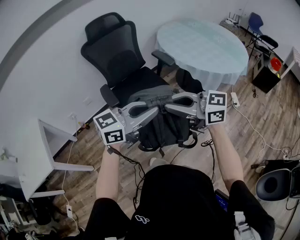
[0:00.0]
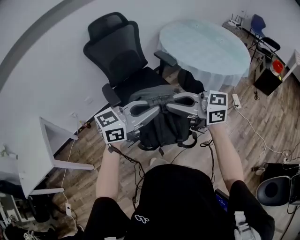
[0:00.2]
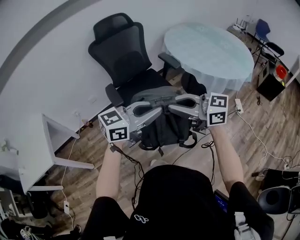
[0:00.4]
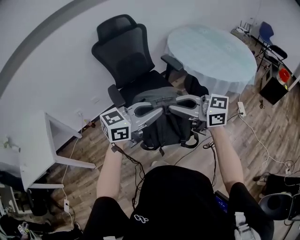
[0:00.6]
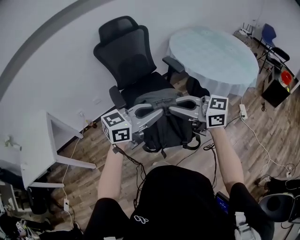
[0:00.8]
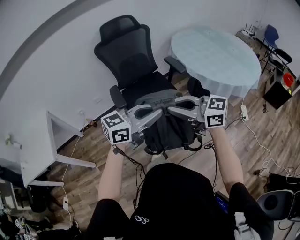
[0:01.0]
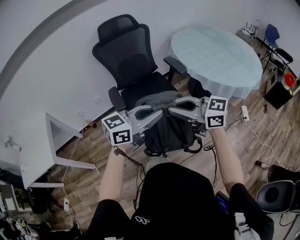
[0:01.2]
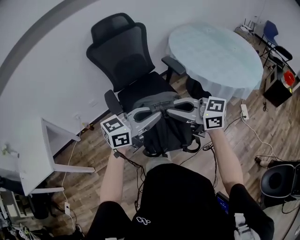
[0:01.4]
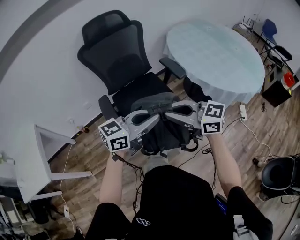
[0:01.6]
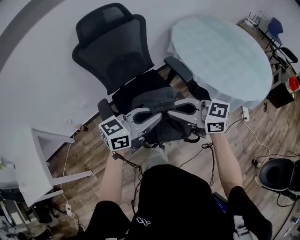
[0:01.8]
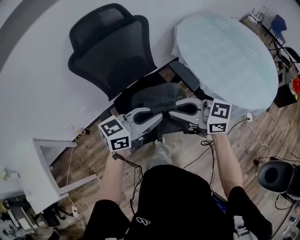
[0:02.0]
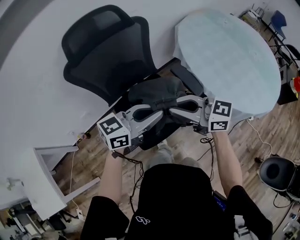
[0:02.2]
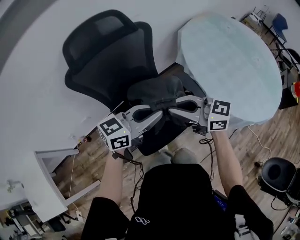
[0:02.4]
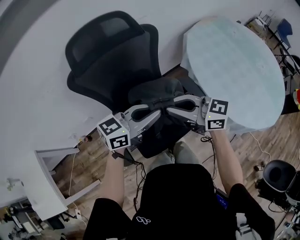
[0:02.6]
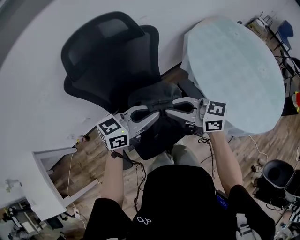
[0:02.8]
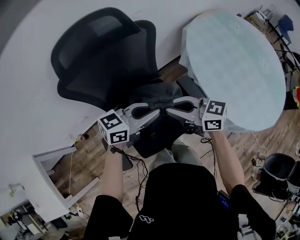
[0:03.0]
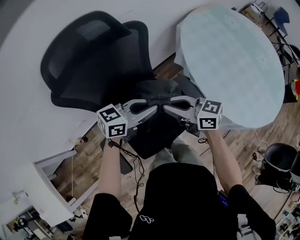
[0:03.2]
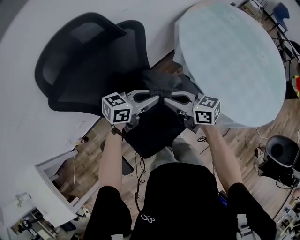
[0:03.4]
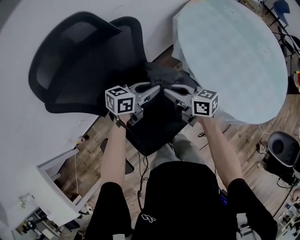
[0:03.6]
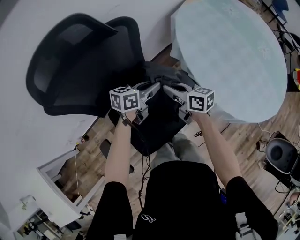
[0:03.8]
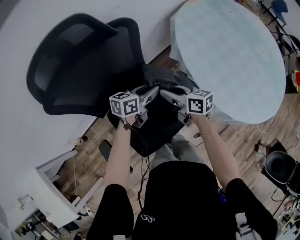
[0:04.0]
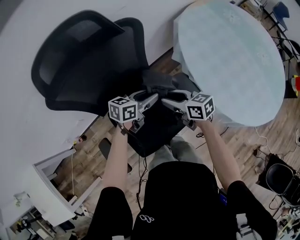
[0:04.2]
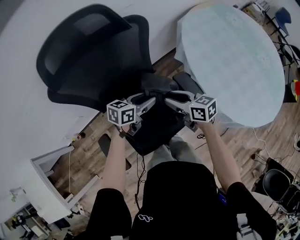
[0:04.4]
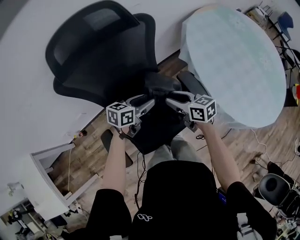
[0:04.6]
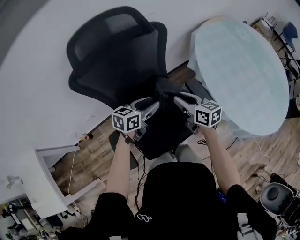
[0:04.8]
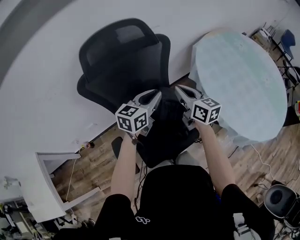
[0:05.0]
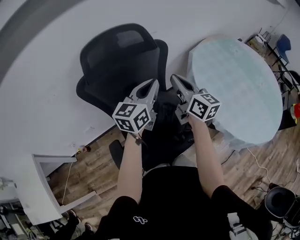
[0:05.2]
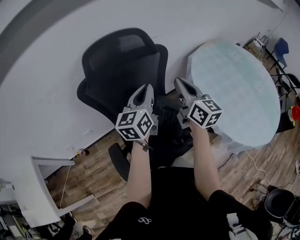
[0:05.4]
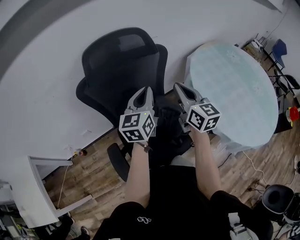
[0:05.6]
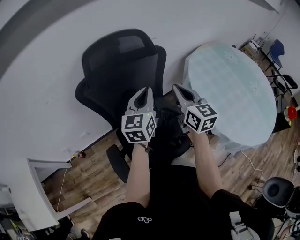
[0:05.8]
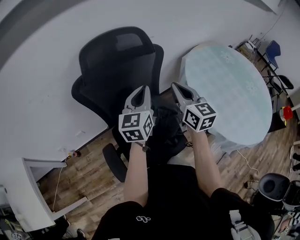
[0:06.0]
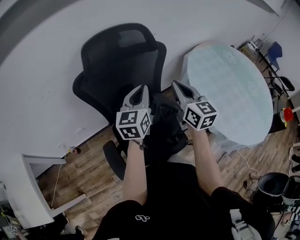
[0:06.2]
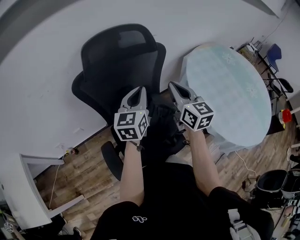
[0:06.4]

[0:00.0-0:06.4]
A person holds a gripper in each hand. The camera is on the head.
0:00.0 to 0:01.6: The right gripper ends up some 20 cm from where it was. Meanwhile the left gripper shifts by about 20 cm.
0:01.6 to 0:03.2: The two grippers travel together, roughly 50 cm. The right gripper swivels approximately 20 degrees.
0:03.2 to 0:04.8: Both grippers travel together downward, approximately 5 cm. The left gripper rotates about 30 degrees, and opens its fingers, while the right gripper turns by roughly 20 degrees.
0:04.8 to 0:06.4: The grippers both shift upward by some 15 cm. The right gripper turns by some 30 degrees, and closes up. The left gripper changes its angle by some 40 degrees, and closes its fingers.

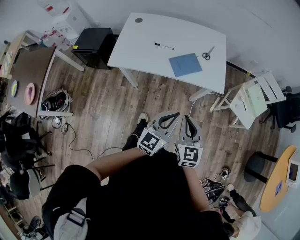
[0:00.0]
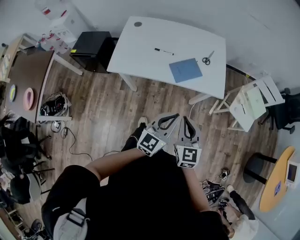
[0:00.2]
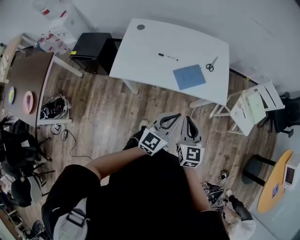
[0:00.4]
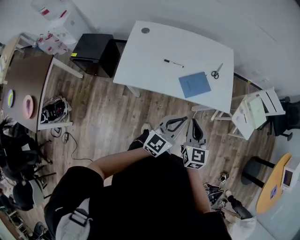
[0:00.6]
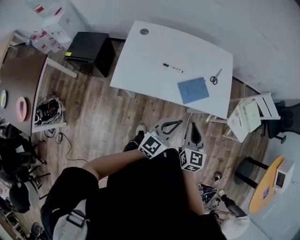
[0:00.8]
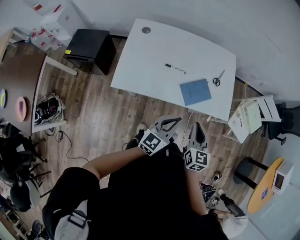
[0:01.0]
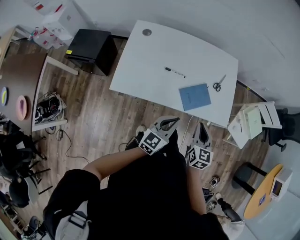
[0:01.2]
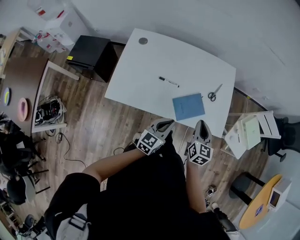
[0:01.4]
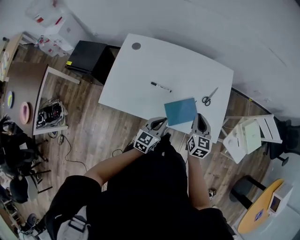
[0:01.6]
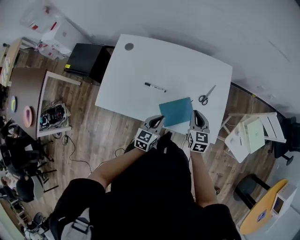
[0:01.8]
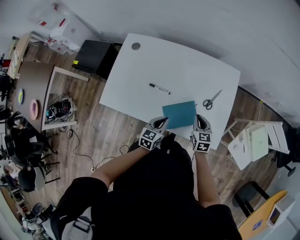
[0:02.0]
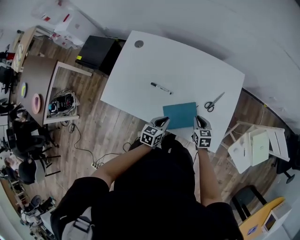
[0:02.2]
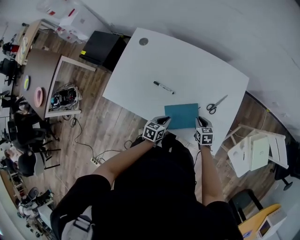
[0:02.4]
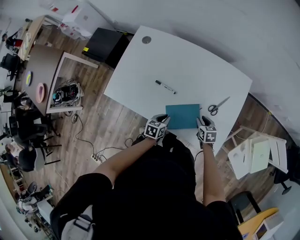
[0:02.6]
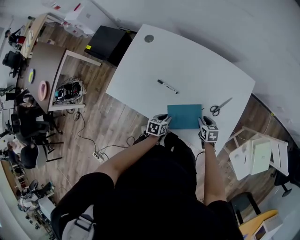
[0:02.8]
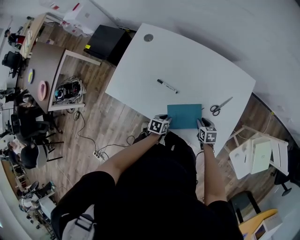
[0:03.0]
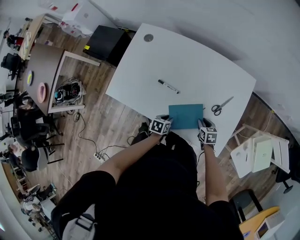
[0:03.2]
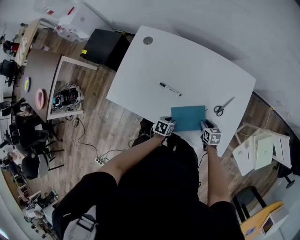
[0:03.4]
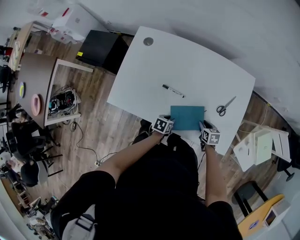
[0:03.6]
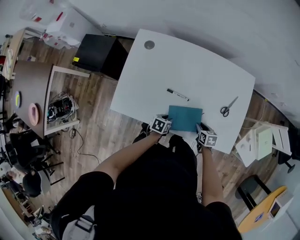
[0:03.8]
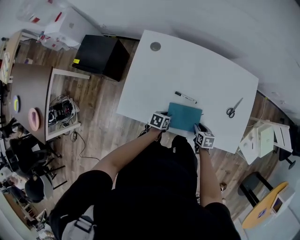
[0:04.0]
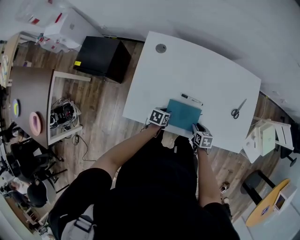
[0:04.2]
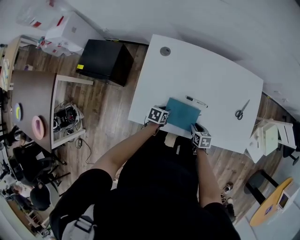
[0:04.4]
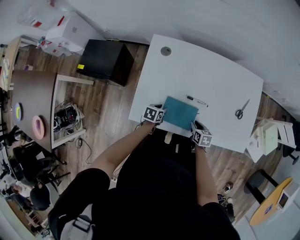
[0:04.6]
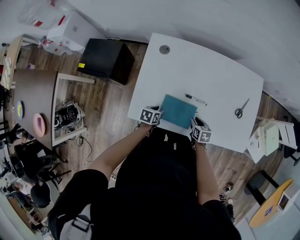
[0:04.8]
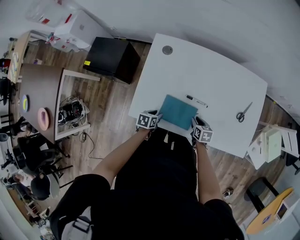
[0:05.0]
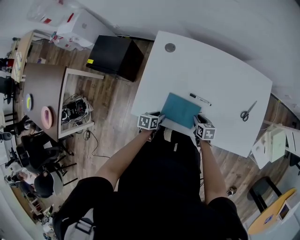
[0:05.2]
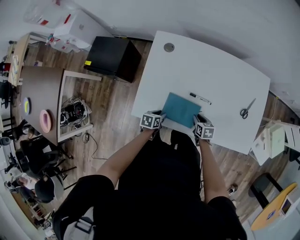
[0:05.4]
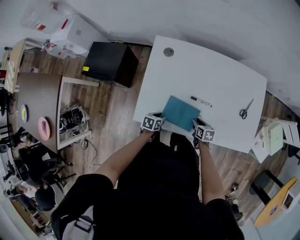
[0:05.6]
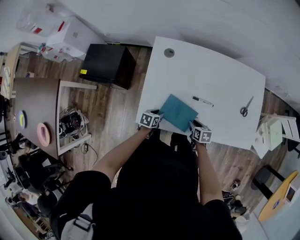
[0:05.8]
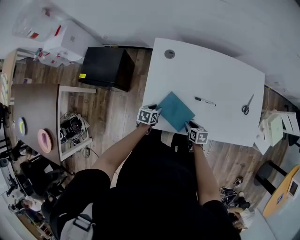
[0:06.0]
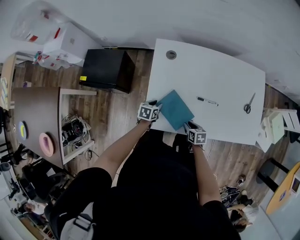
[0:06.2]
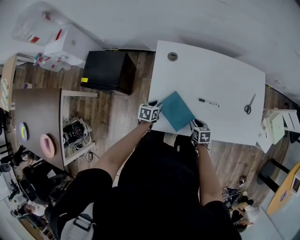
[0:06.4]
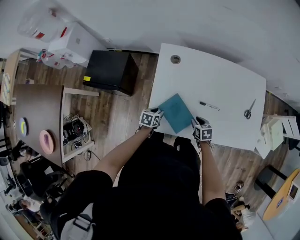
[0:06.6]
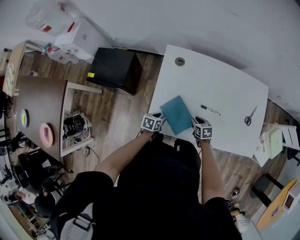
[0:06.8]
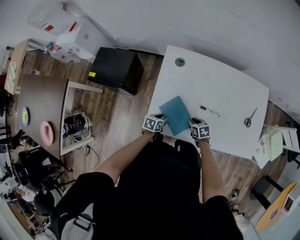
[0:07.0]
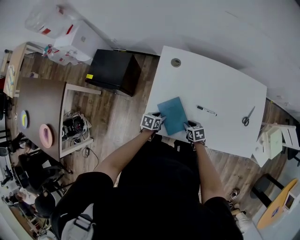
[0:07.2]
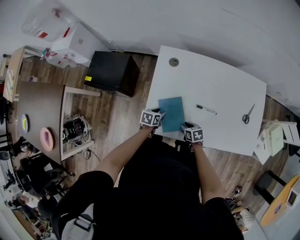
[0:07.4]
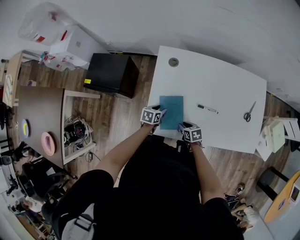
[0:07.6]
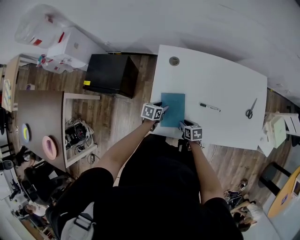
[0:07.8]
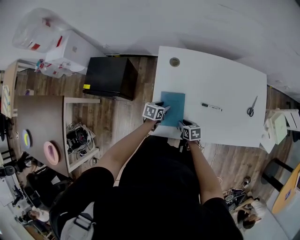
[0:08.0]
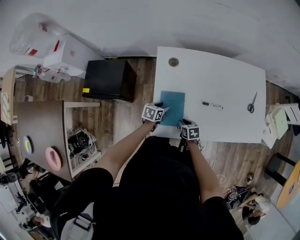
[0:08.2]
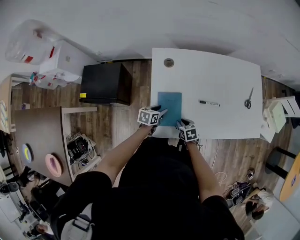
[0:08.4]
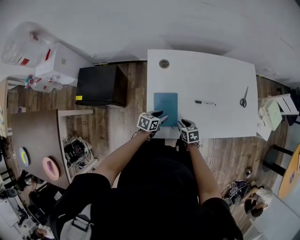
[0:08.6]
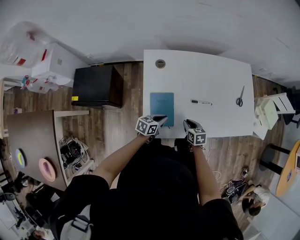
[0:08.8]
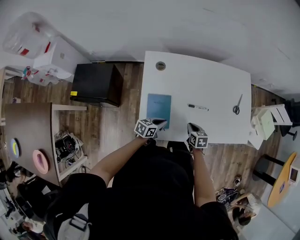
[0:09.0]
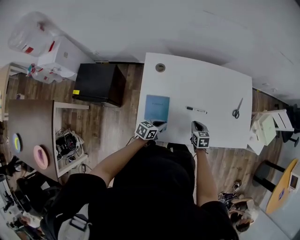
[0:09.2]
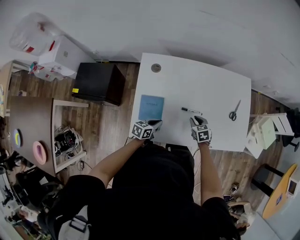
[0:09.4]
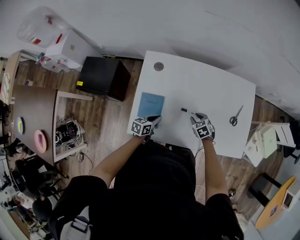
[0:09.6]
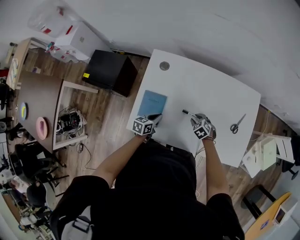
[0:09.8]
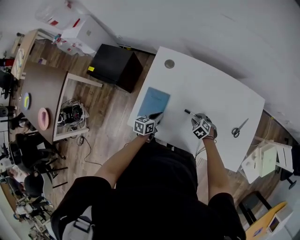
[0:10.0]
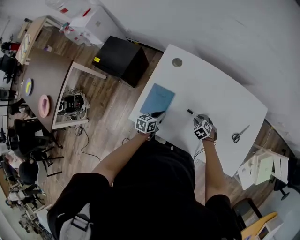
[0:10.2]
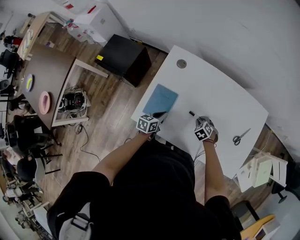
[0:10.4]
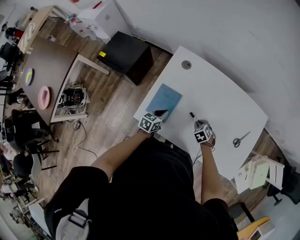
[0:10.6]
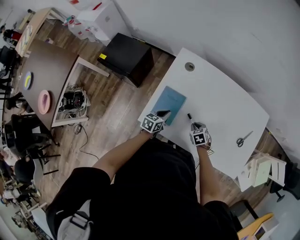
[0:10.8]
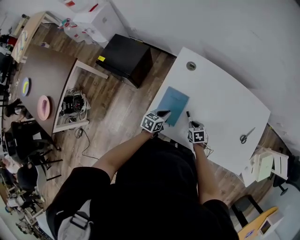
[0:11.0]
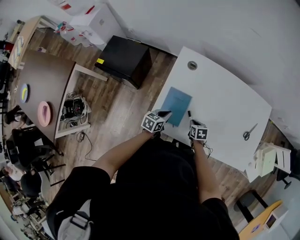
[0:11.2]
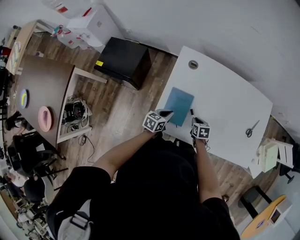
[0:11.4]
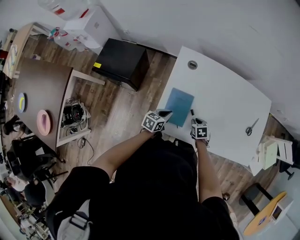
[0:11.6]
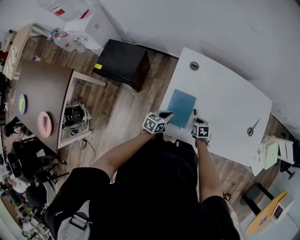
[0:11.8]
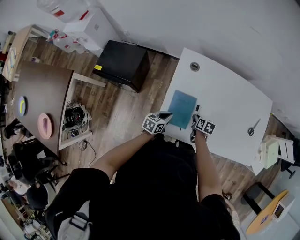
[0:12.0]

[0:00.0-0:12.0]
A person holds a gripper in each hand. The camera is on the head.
0:00.0 to 0:01.6: The left gripper is displaced forward, to the left and downward by approximately 35 cm. The right gripper shifts some 35 cm forward.
0:01.6 to 0:03.0: The two grippers go about 25 cm downward. The right gripper changes its angle by approximately 50 degrees, and opens; the left gripper angles its fingers downward, by roughly 40 degrees, and opens its fingers.
0:03.0 to 0:04.4: Both grippers move to the left, approximately 25 cm.
0:04.4 to 0:06.0: Both grippers travel together to the left, approximately 10 cm.
0:06.0 to 0:07.6: The right gripper shifts approximately 5 cm to the left.
0:07.6 to 0:09.0: The right gripper ends up some 10 cm from where it was, and rotates roughly 20 degrees; the left gripper ends up roughly 10 cm from where it was, swivels about 30 degrees, and closes its fingers.
0:09.0 to 0:10.4: The right gripper changes place by some 10 cm, and rotates around the line of its fingers by about 60 degrees, counterclockwise from behind. Meanwhile the left gripper turns by about 40 degrees.
0:10.4 to 0:12.0: Both grippers travel together to the left, roughly 15 cm. The right gripper rotates around the line of its fingers by about 70 degrees, clockwise from behind.

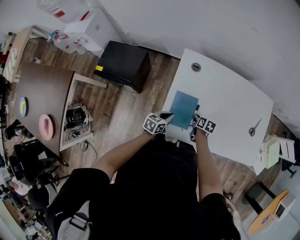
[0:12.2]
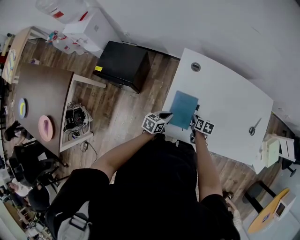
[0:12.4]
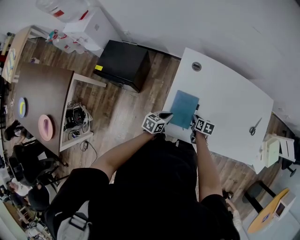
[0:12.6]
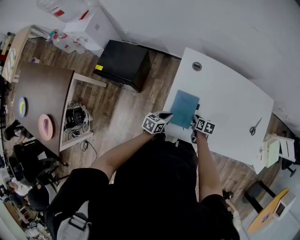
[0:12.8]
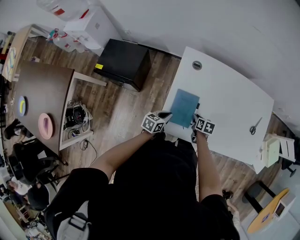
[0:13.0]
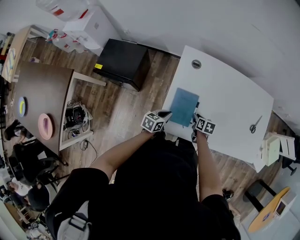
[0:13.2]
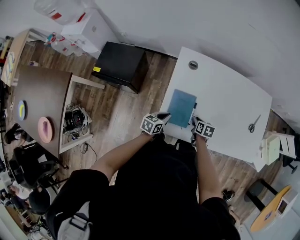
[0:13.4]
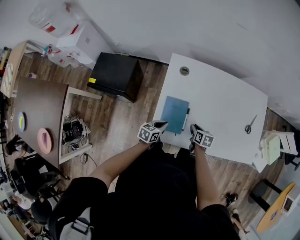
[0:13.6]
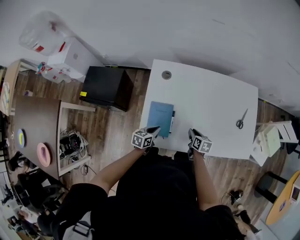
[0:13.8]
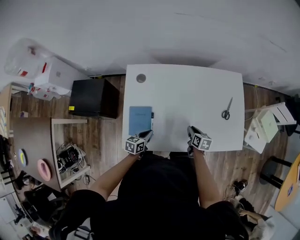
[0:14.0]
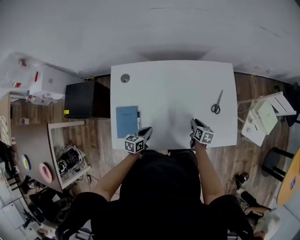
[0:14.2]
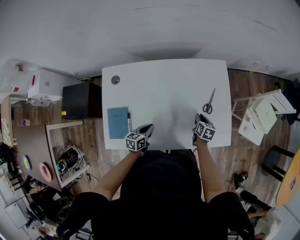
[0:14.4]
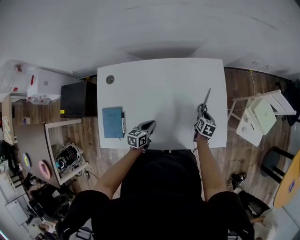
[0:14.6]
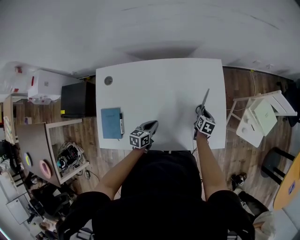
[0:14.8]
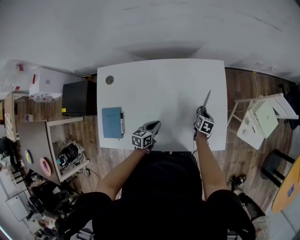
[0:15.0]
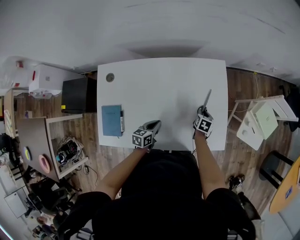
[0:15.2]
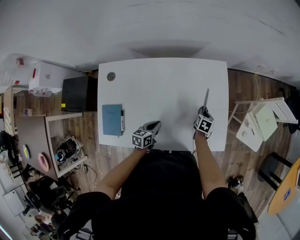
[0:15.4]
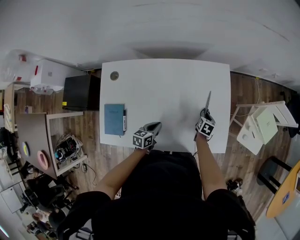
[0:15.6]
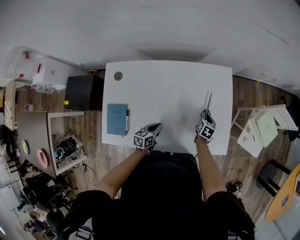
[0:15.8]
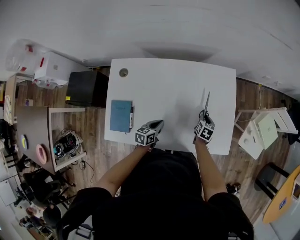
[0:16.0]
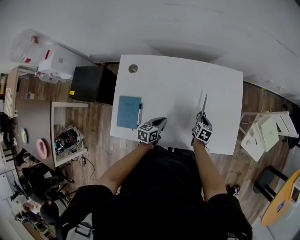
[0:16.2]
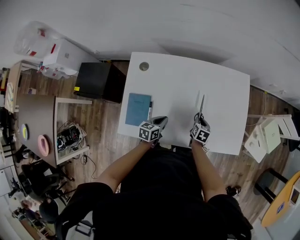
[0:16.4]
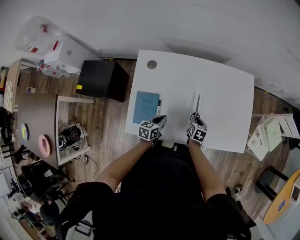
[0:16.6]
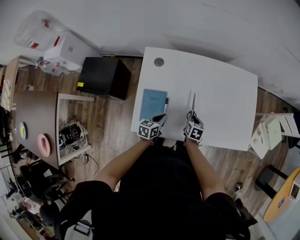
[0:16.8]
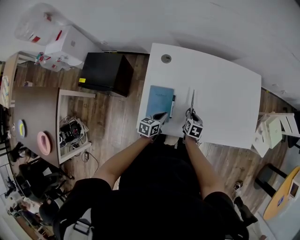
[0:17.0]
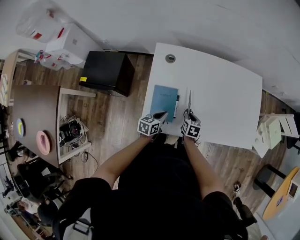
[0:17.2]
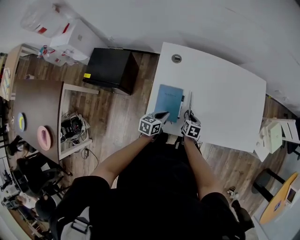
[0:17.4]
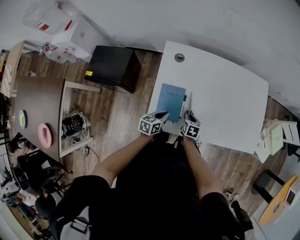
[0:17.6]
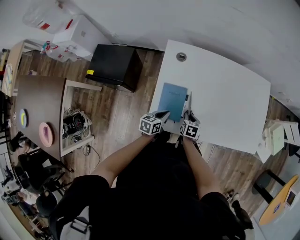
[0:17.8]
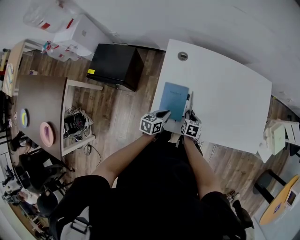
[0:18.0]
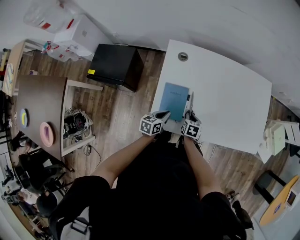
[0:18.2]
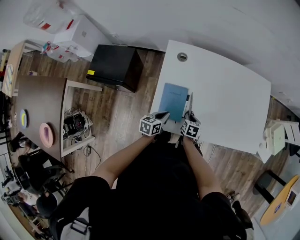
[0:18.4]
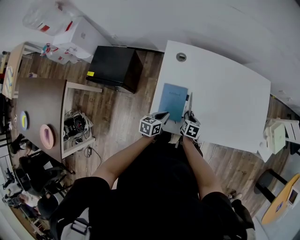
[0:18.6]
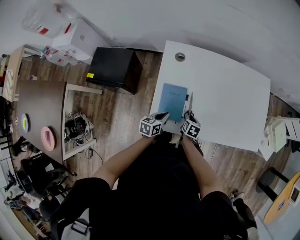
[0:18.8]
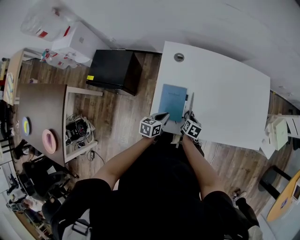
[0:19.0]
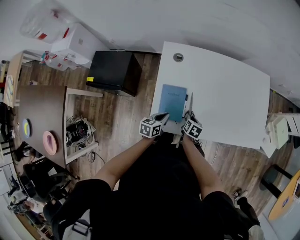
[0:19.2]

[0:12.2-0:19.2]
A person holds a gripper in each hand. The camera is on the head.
0:12.2 to 0:13.6: The right gripper changes place by some 5 cm.
0:13.6 to 0:15.0: The grippers both shift to the right and forward by roughly 40 cm. The right gripper changes its angle by roughly 20 degrees.
0:15.0 to 0:16.4: Both grippers travel together to the left and backward, roughly 15 cm.
0:16.4 to 0:17.8: Both grippers travel together to the left and backward, some 25 cm.
0:17.8 to 0:19.2: The grippers move only a little.
